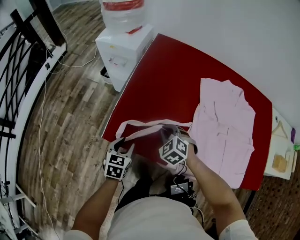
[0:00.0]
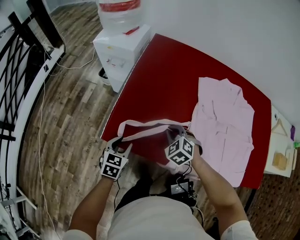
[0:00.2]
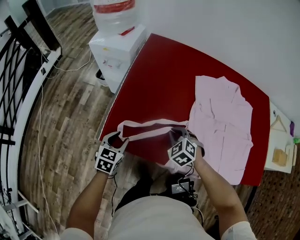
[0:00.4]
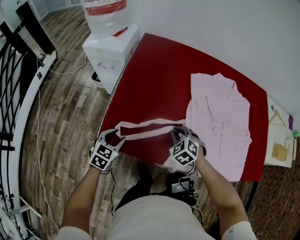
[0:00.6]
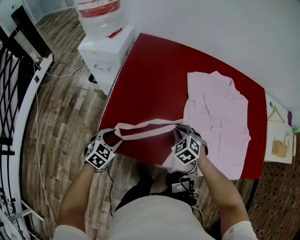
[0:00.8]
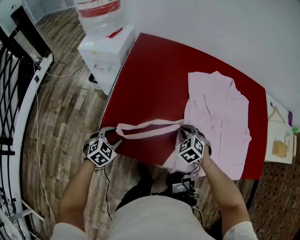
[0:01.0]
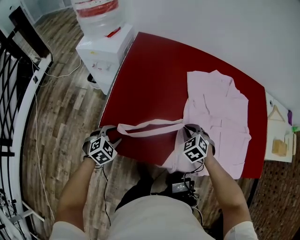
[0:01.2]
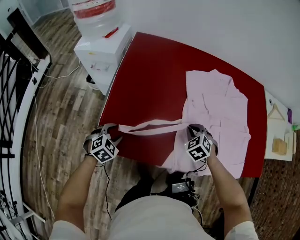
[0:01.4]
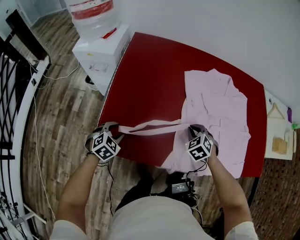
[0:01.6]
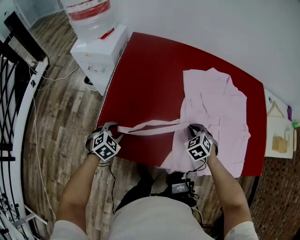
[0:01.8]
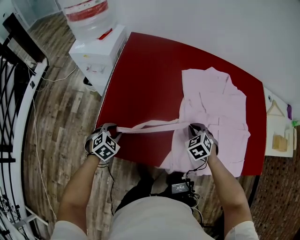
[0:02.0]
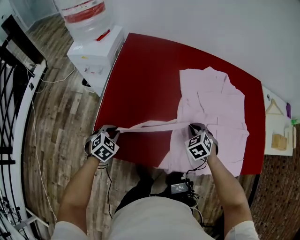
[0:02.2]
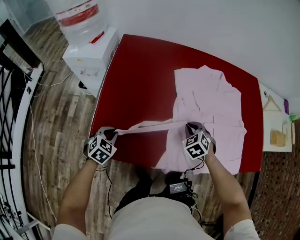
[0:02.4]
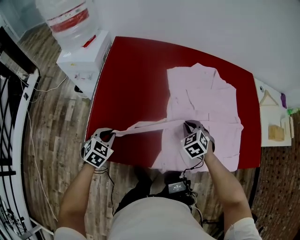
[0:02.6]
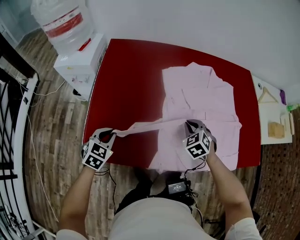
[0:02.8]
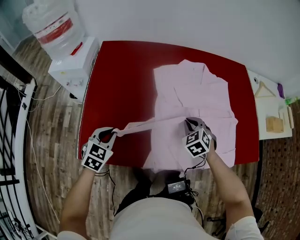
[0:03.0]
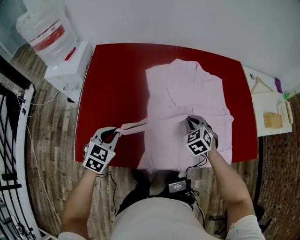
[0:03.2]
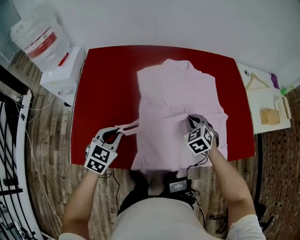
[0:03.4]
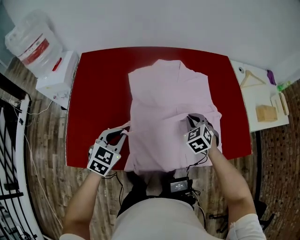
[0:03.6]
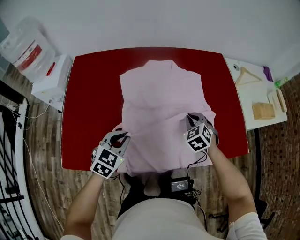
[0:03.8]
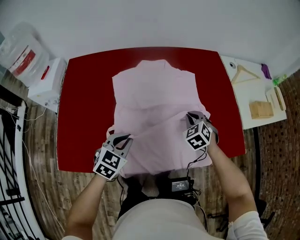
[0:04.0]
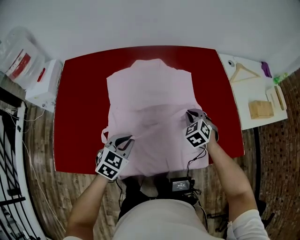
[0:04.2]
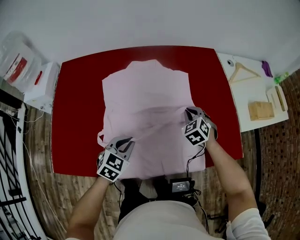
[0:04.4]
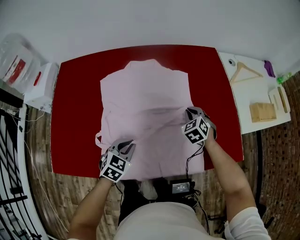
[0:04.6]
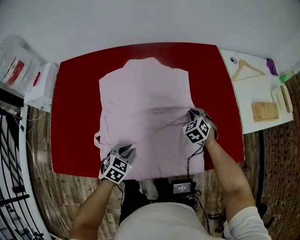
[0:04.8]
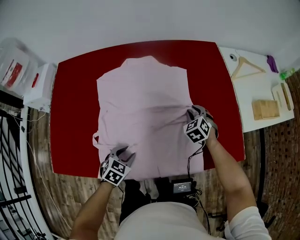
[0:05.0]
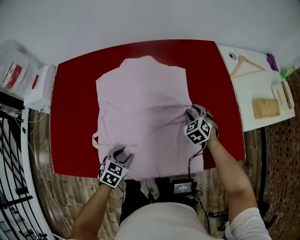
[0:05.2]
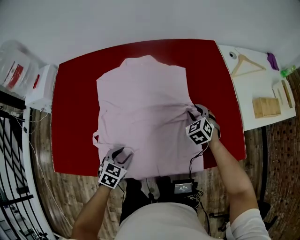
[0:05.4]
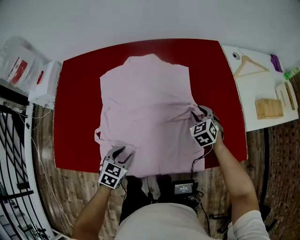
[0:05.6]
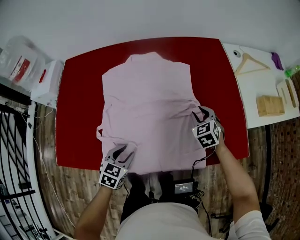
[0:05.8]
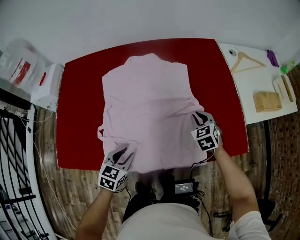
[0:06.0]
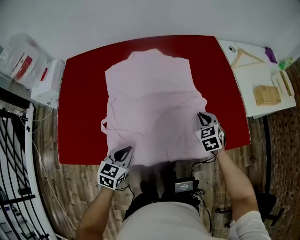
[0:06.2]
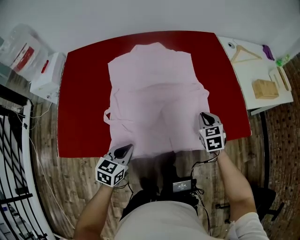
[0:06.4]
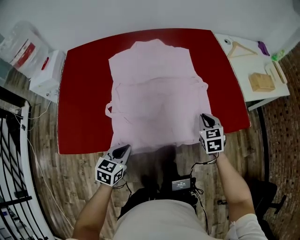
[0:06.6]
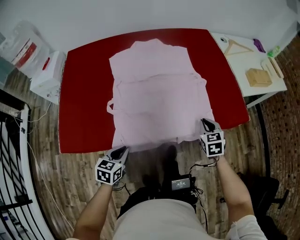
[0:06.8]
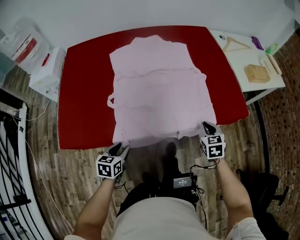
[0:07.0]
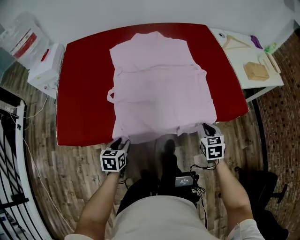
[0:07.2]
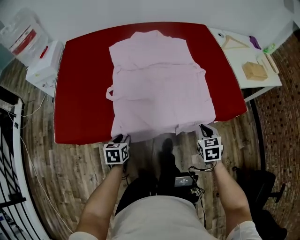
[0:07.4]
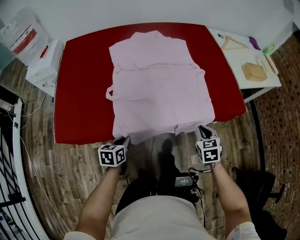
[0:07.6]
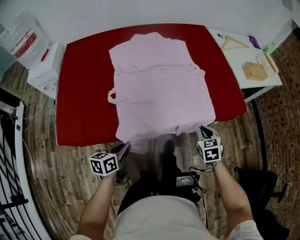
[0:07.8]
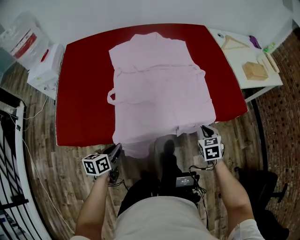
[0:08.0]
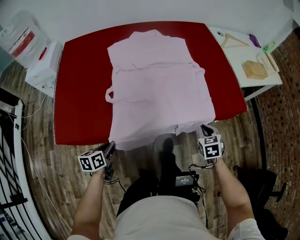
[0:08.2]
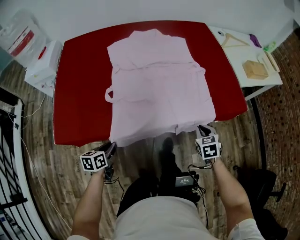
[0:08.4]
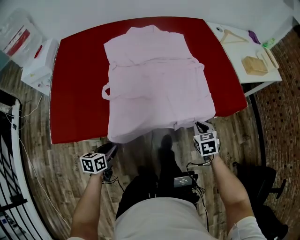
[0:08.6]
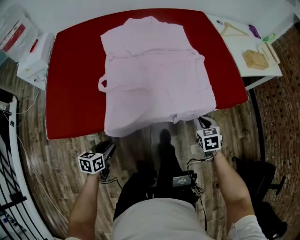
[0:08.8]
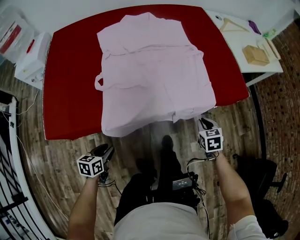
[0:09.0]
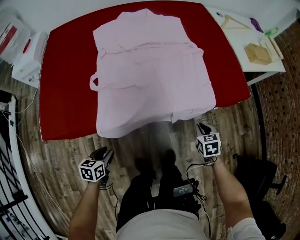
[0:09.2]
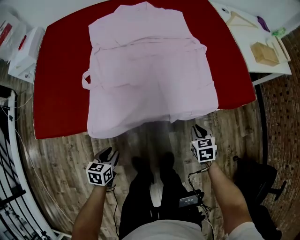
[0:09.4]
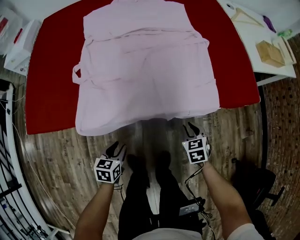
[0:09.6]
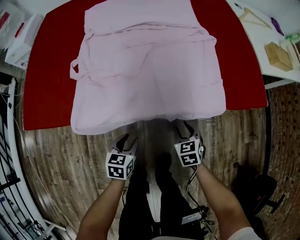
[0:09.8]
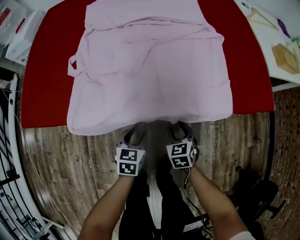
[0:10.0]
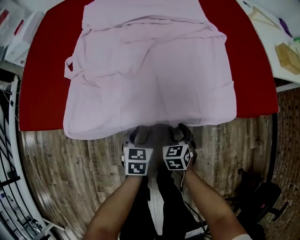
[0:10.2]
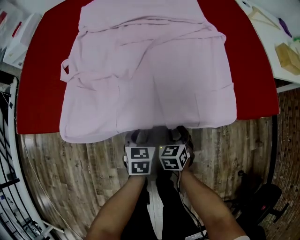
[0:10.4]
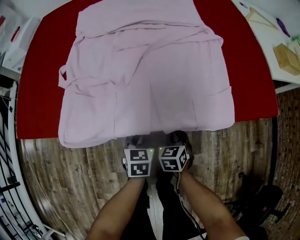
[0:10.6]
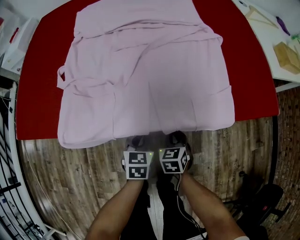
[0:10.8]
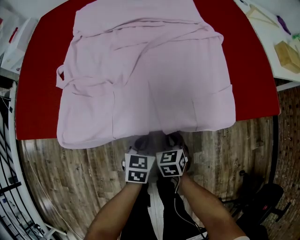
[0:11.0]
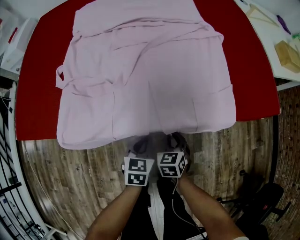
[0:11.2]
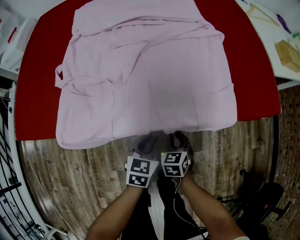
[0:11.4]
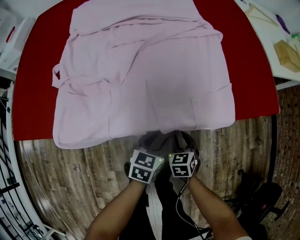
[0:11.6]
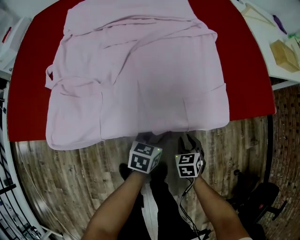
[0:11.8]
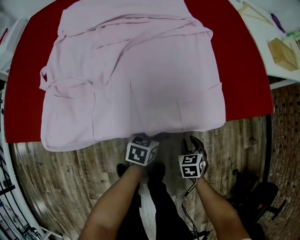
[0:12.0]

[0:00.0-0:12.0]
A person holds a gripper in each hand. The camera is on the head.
0:00.0 to 0:01.6: The left gripper moves forward, roughly 10 cm, and rolls clockwise, seen from behind, by about 40 degrees. Meanwhile the right gripper is displaced to the right by about 20 cm, and rotates some 20 degrees.
0:01.6 to 0:03.0: The left gripper travels upward and to the right by approximately 10 cm, and closes up, while the right gripper travels to the right by about 10 cm.
0:03.0 to 0:04.4: The left gripper is displaced to the right by about 30 cm. The right gripper moves to the right and forward, about 25 cm.
0:04.4 to 0:06.0: The right gripper heads to the right, covering some 5 cm; the left gripper heads backward, covering approximately 10 cm, and opens up.
0:06.0 to 0:07.6: The right gripper heads backward, covering approximately 25 cm, while the left gripper travels backward, downward and to the left by approximately 15 cm, turns by some 30 degrees, and closes its fingers.
0:07.6 to 0:09.0: The right gripper travels downward by roughly 5 cm; the left gripper moves backward and downward, some 10 cm, and opens.
0:09.0 to 0:10.4: The left gripper goes about 25 cm to the right and forward, and rotates roughly 20 degrees; the right gripper heads downward and to the left, covering about 20 cm, and opens.
0:10.4 to 0:12.0: Both grippers travel together to the right, approximately 15 cm. The left gripper turns by roughly 30 degrees, and closes, then reopens, while the right gripper closes and opens again.

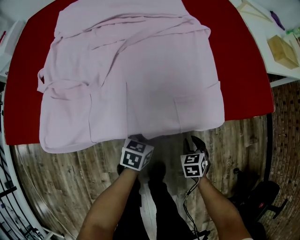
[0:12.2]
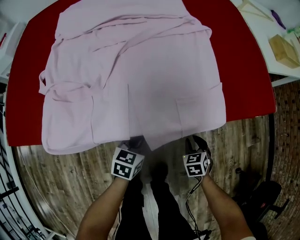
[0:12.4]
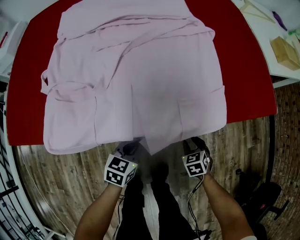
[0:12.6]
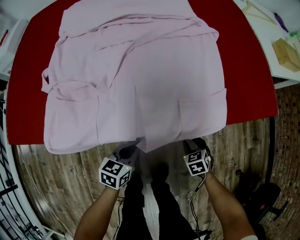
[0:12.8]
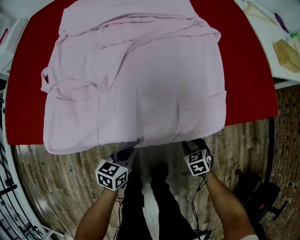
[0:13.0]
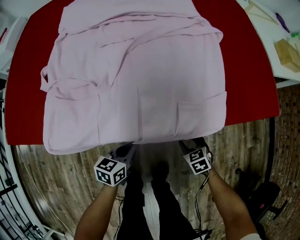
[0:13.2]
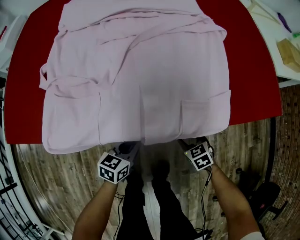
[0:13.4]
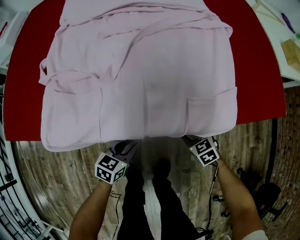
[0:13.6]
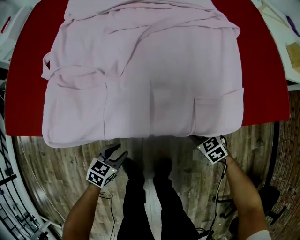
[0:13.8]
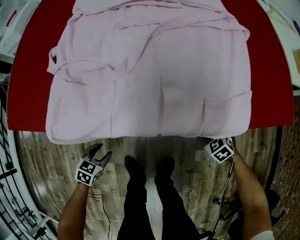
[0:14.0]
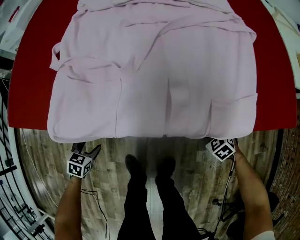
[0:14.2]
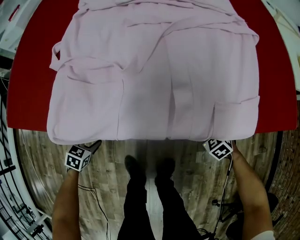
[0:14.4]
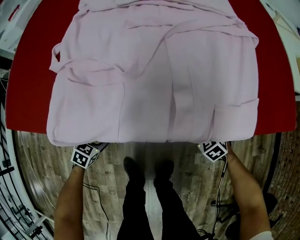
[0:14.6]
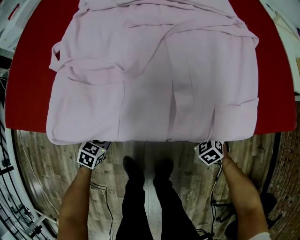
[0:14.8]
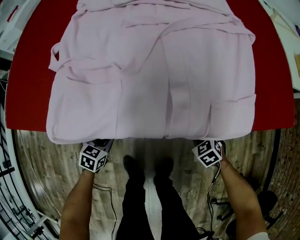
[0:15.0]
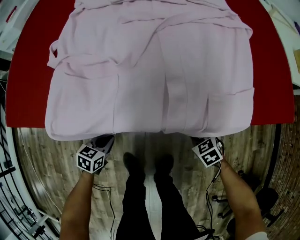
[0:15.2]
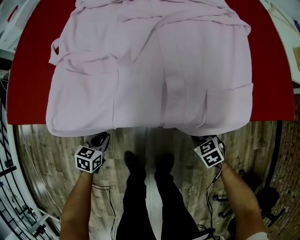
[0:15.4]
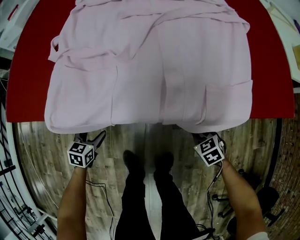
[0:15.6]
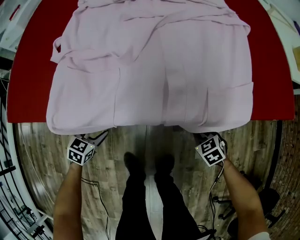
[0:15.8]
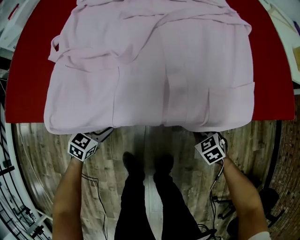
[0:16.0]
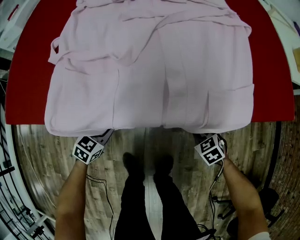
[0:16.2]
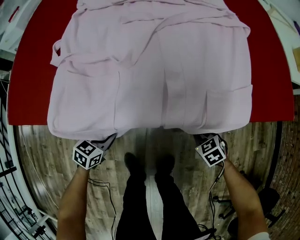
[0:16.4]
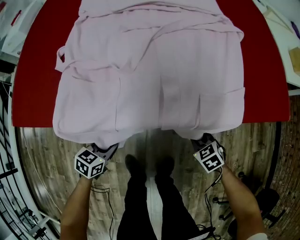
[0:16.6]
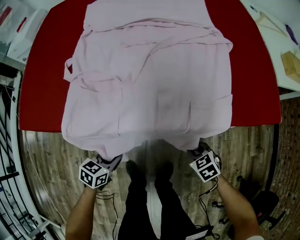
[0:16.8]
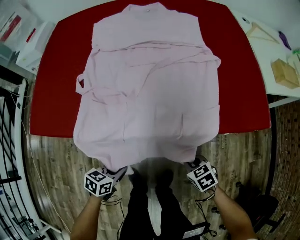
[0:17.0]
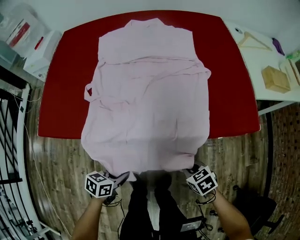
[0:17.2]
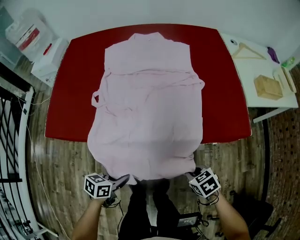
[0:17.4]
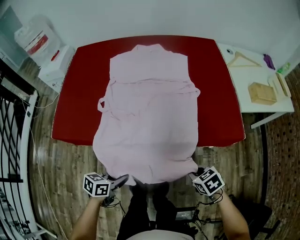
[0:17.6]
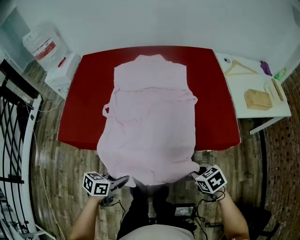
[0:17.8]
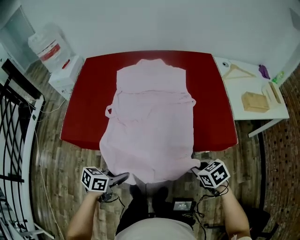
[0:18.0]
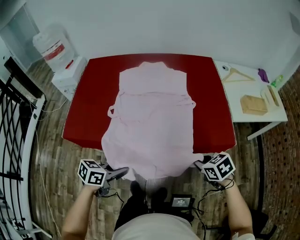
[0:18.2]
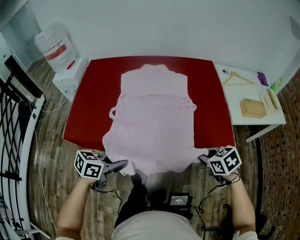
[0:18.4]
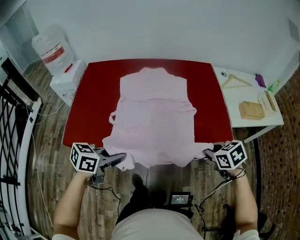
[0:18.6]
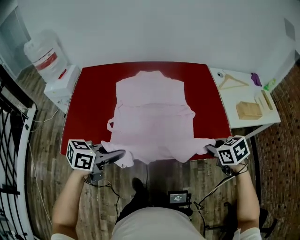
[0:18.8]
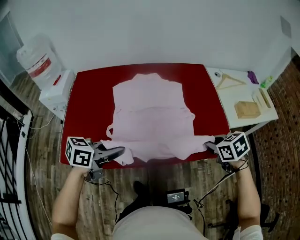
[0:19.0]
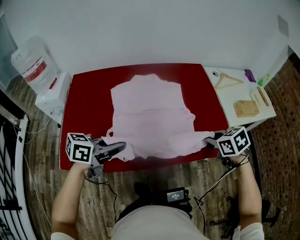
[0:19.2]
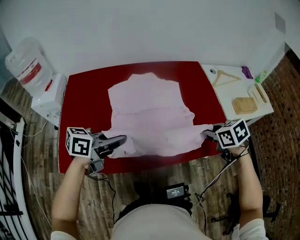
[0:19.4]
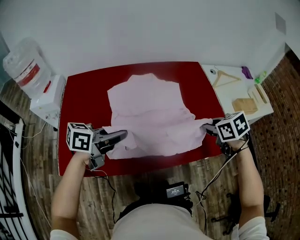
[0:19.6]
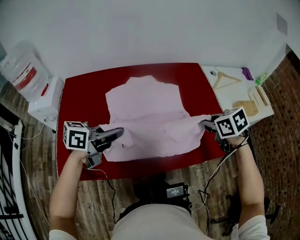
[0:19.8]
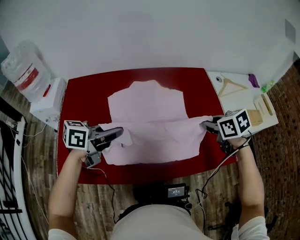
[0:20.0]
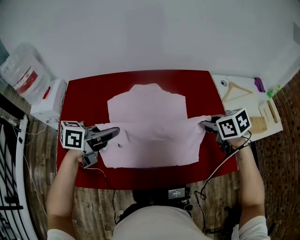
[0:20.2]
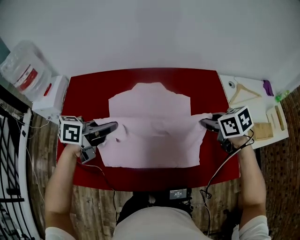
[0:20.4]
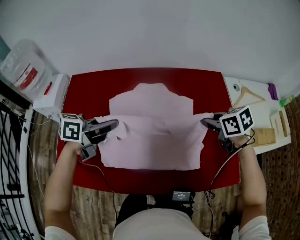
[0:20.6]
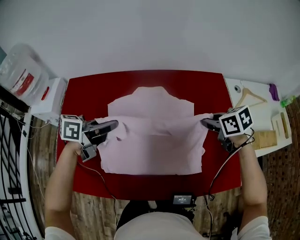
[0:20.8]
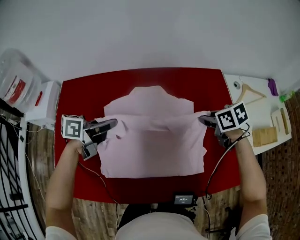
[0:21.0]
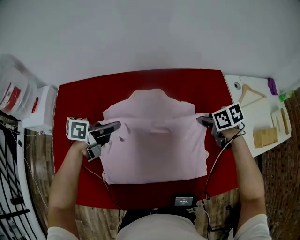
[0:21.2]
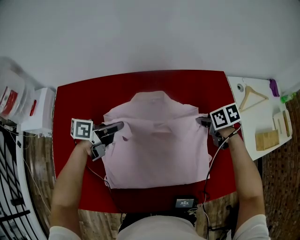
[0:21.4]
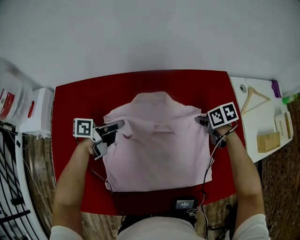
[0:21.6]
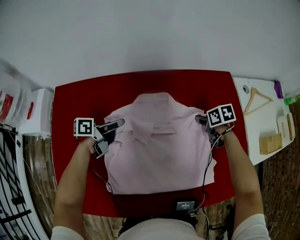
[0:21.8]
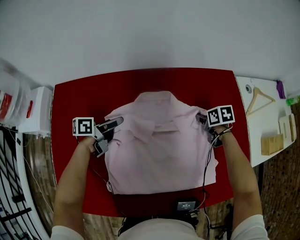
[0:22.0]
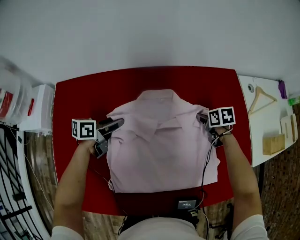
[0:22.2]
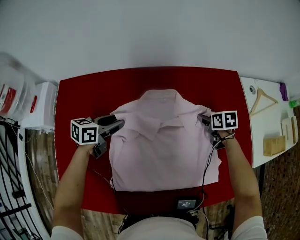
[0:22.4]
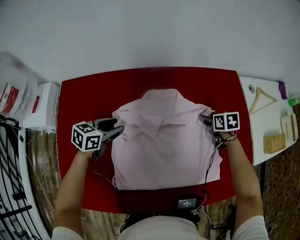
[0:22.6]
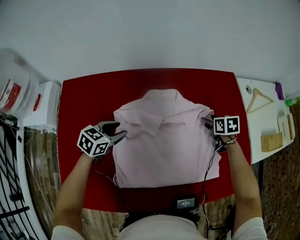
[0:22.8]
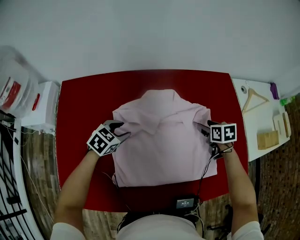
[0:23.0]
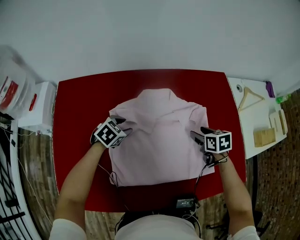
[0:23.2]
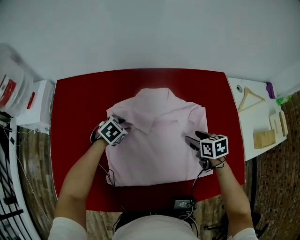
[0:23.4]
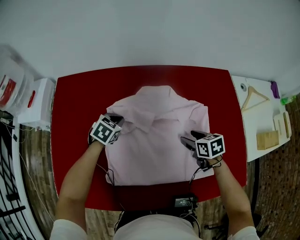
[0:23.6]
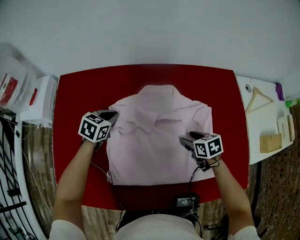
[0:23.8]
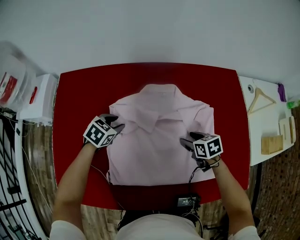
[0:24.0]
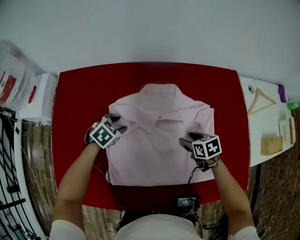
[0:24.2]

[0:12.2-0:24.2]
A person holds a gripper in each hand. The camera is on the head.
0:12.2 to 0:13.8: The right gripper moves to the left, some 5 cm, changes its angle by roughly 30 degrees, and opens its fingers. The left gripper travels to the left and backward by some 20 cm, and opens its fingers.
0:13.8 to 0:15.2: The left gripper moves to the left, approximately 5 cm, and closes up. Meanwhile the right gripper closes its fingers.
0:15.2 to 0:16.6: The left gripper moves upward, some 5 cm, goes to the left and returns, some 5 cm each way, and opens, then closes again.
0:16.6 to 0:18.2: Both grippers move upward, approximately 35 cm.
0:18.2 to 0:19.8: Both grippers move forward, upward and to the left, some 30 cm. The left gripper changes its angle by roughly 20 degrees.
0:19.8 to 0:21.2: The two grippers go roughly 25 cm forward and downward.
0:21.2 to 0:22.6: The right gripper is displaced downward and forward by some 10 cm, and opens its fingers, while the left gripper travels downward and to the left by about 10 cm, swivels roughly 30 degrees, and opens up.
0:22.6 to 0:24.2: The right gripper shifts roughly 15 cm backward and to the left; the left gripper goes up and down, approximately 10 cm each way, reversing 2 times, rotates approximately 40 degrees, and closes and opens again.
